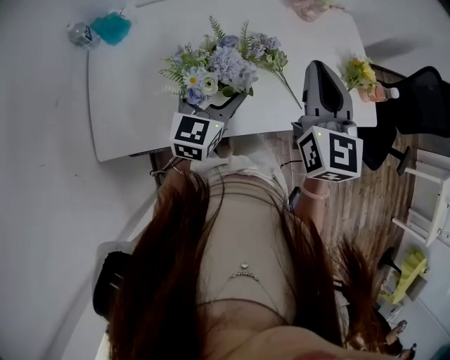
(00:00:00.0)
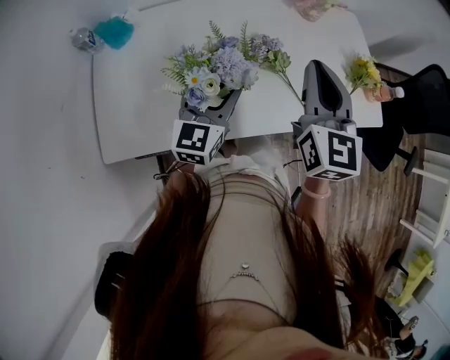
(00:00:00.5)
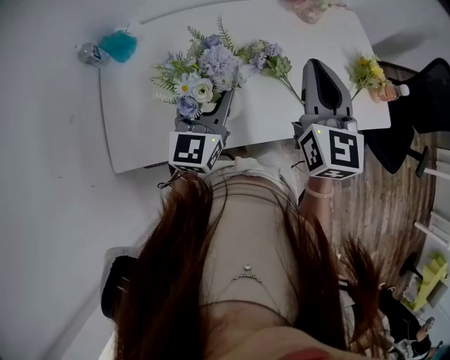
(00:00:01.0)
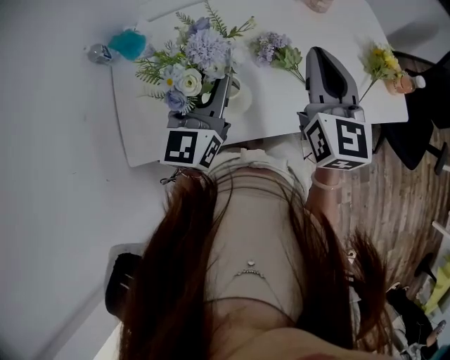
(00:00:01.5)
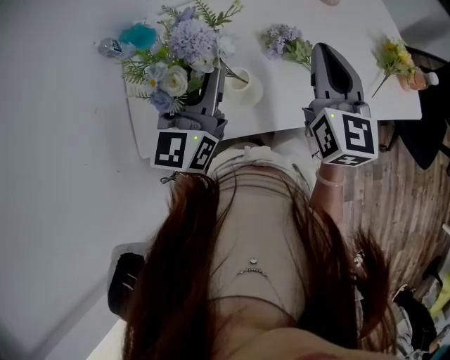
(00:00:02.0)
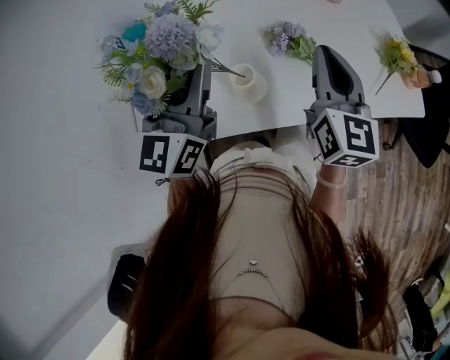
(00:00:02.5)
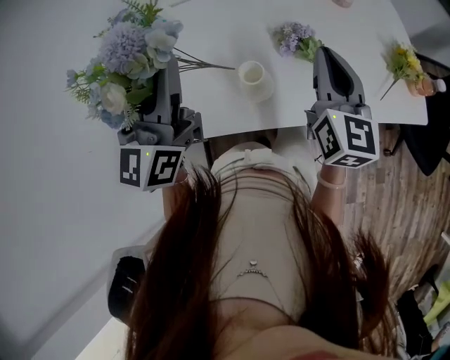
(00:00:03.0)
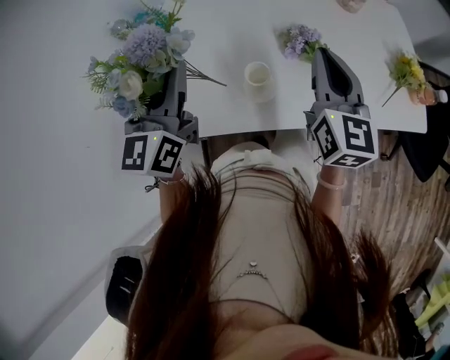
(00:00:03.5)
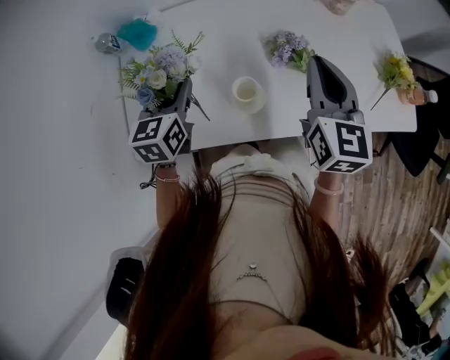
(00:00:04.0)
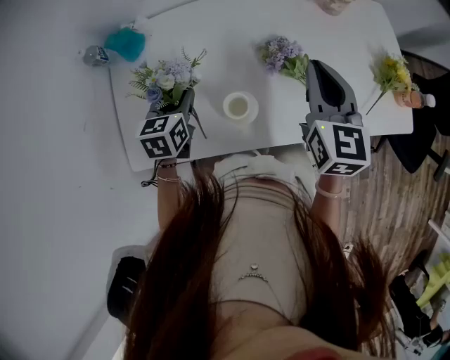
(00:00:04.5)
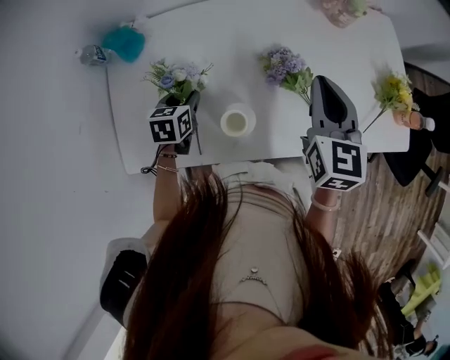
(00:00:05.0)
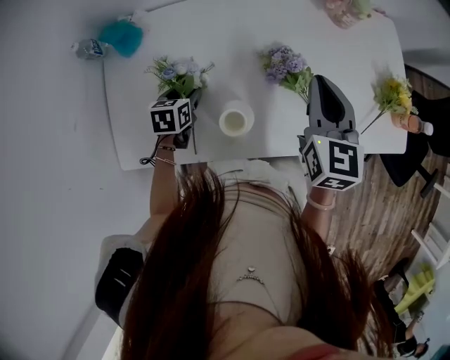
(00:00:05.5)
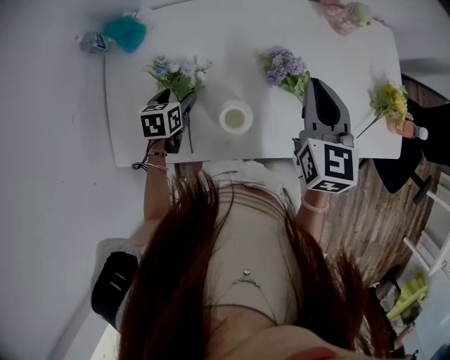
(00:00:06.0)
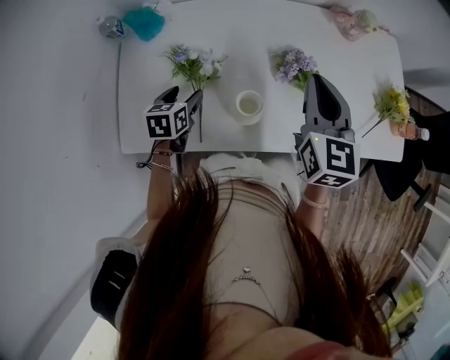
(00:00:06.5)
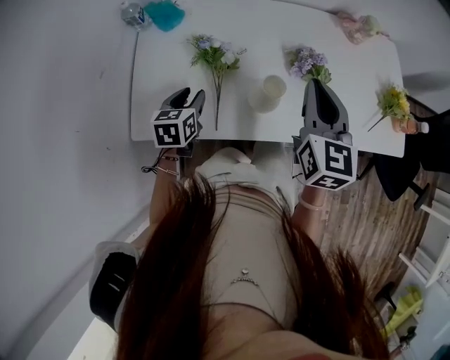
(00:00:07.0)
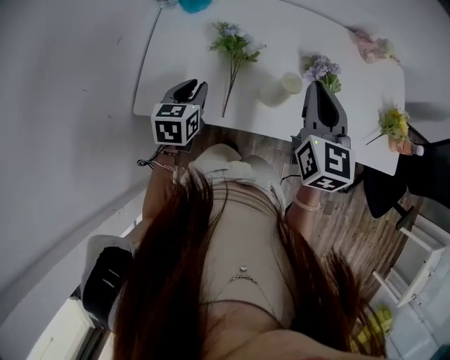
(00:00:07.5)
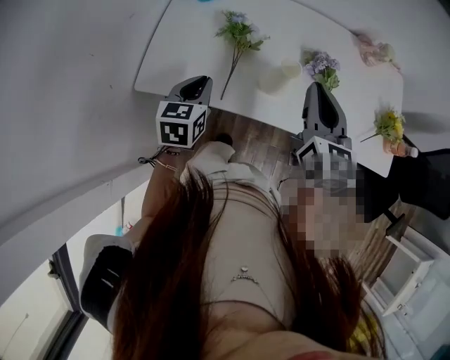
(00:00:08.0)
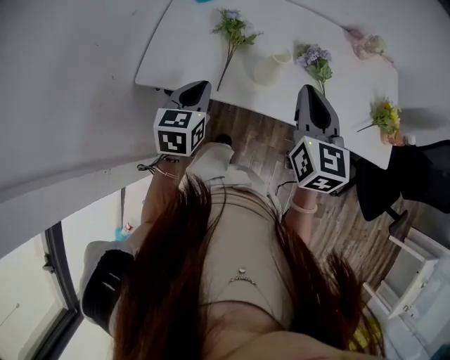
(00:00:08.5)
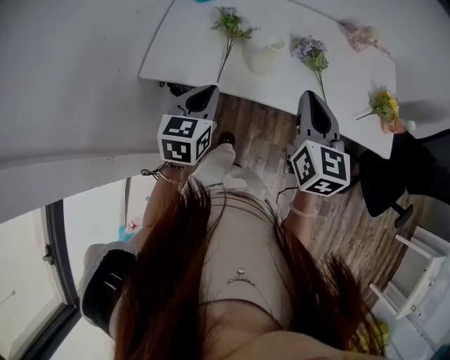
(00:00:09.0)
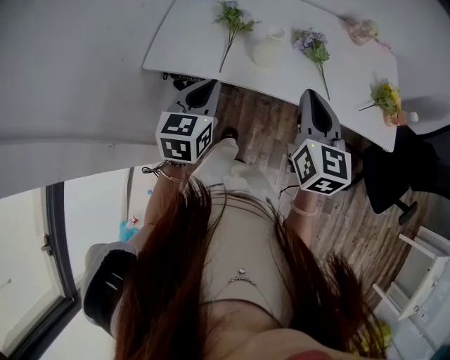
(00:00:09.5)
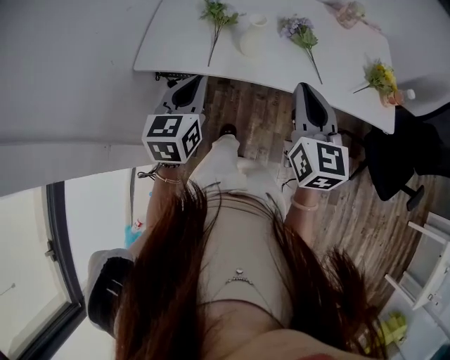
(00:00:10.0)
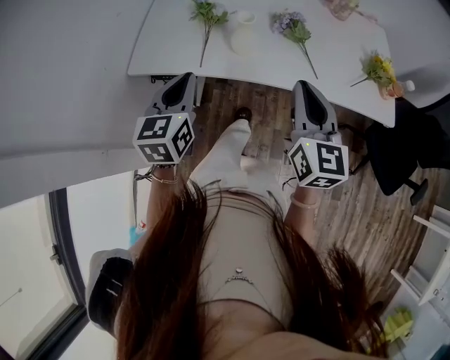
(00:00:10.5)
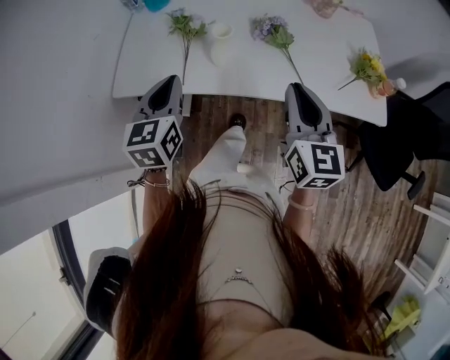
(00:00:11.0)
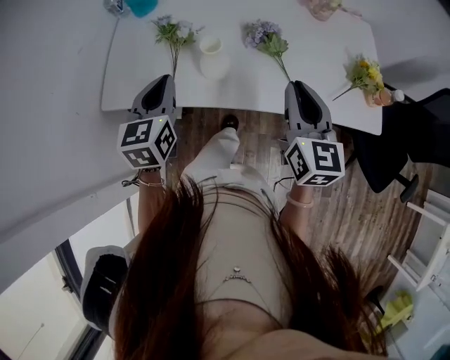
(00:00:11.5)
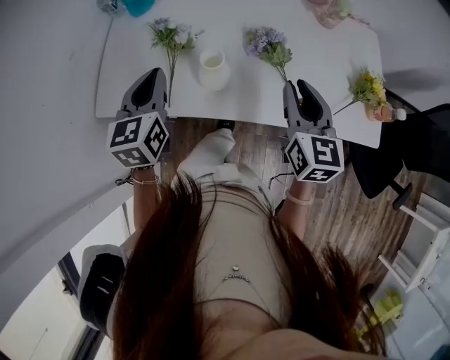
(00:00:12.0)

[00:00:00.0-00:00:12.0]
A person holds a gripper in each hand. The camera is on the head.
00:00:00.0 to 00:00:02.0: The left gripper is displaced upward by roughly 15 cm, and closes.
00:00:02.0 to 00:00:04.0: The left gripper moves downward and to the left, approximately 15 cm, and changes its angle by approximately 30 degrees.
00:00:04.0 to 00:00:06.0: The left gripper travels downward by about 15 cm, rotates approximately 30 degrees, and opens up. Meanwhile the right gripper moves forward, approximately 5 cm.
00:00:06.0 to 00:00:08.0: The right gripper heads backward and to the left, covering about 20 cm. The left gripper shifts some 25 cm backward and upward, swivels approximately 20 degrees, and closes.
00:00:08.0 to 00:00:10.0: The right gripper goes roughly 20 cm backward. The left gripper is displaced backward, upward and to the right by roughly 20 cm.
00:00:10.0 to 00:00:12.0: The right gripper shifts about 20 cm forward and to the right. The left gripper heads forward, covering roughly 20 cm.

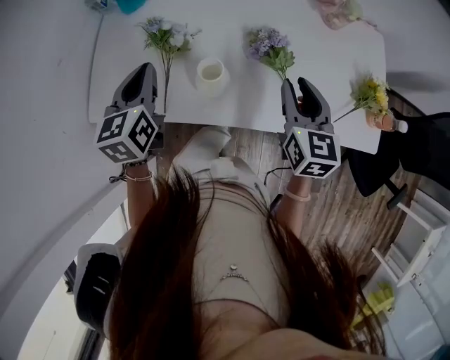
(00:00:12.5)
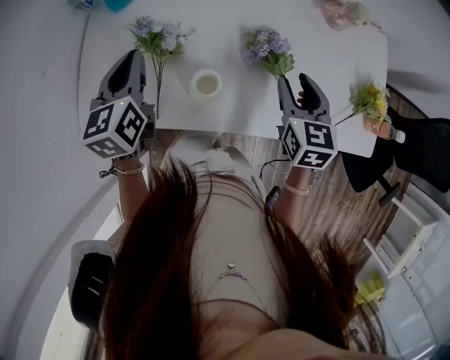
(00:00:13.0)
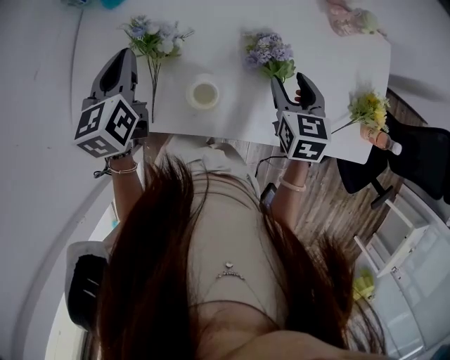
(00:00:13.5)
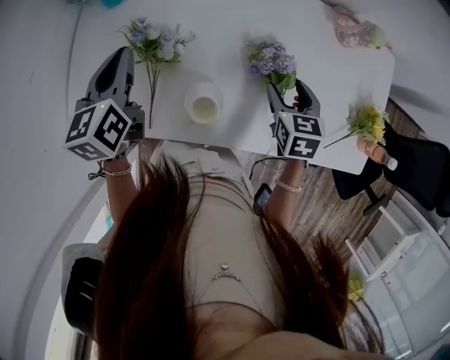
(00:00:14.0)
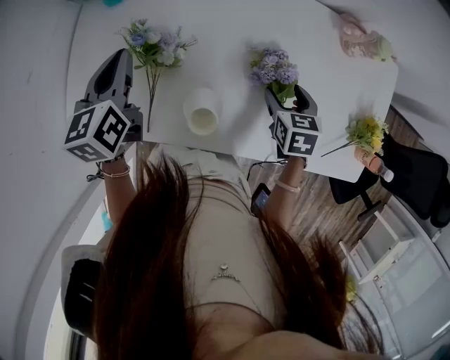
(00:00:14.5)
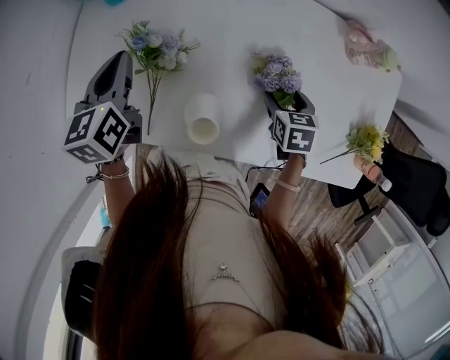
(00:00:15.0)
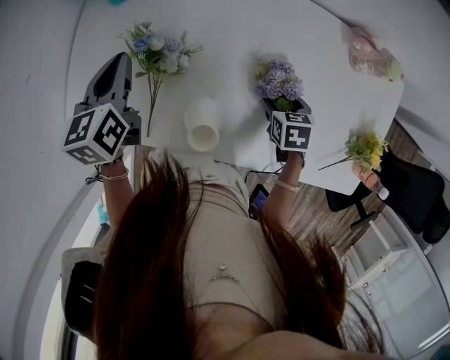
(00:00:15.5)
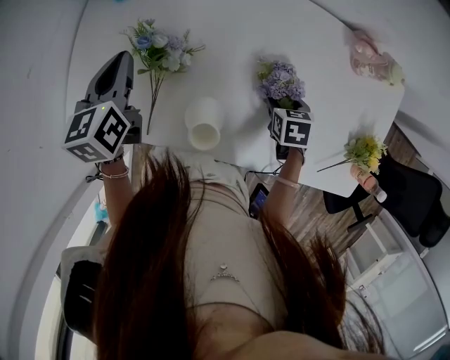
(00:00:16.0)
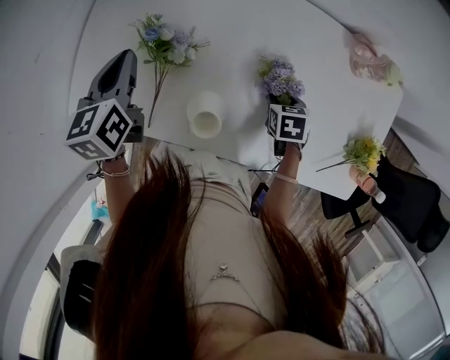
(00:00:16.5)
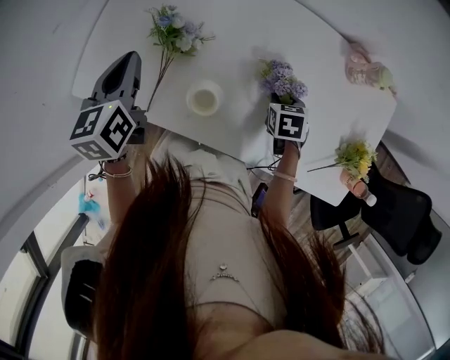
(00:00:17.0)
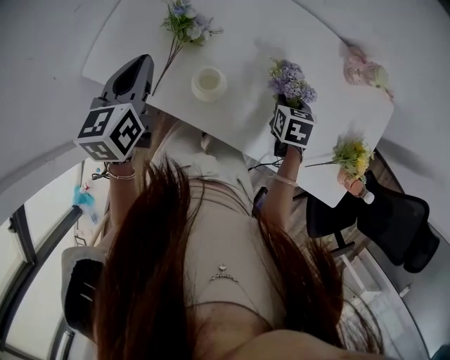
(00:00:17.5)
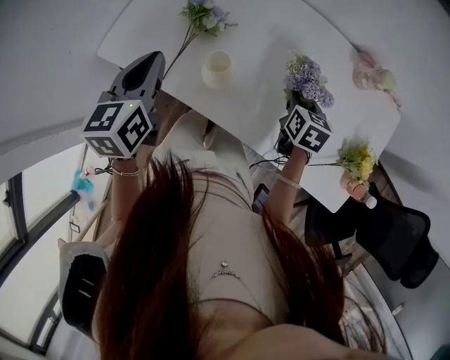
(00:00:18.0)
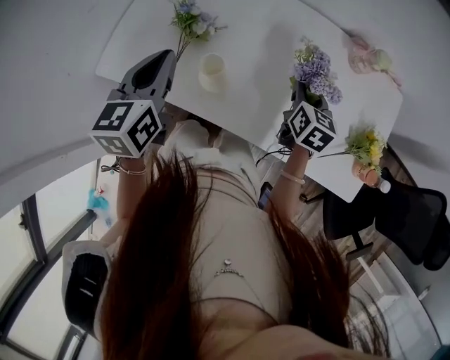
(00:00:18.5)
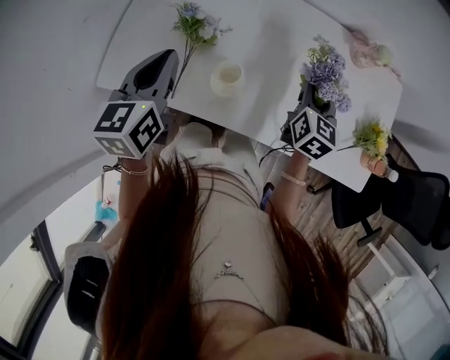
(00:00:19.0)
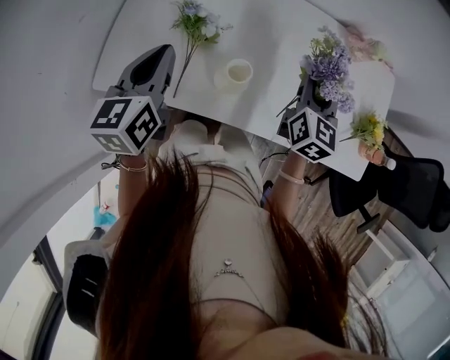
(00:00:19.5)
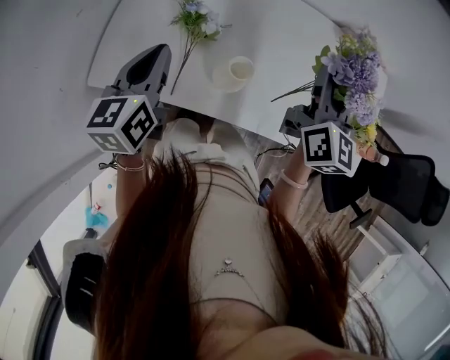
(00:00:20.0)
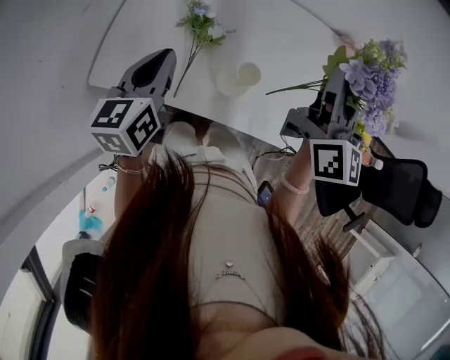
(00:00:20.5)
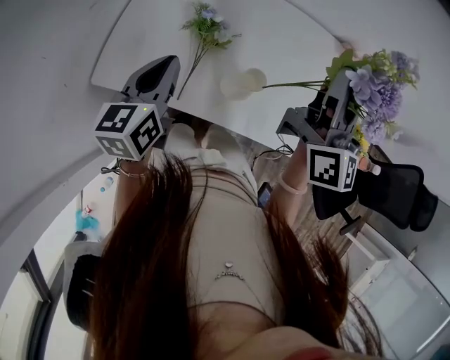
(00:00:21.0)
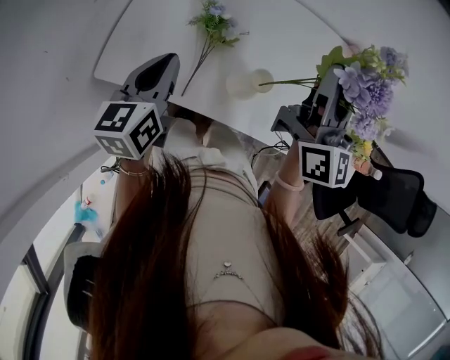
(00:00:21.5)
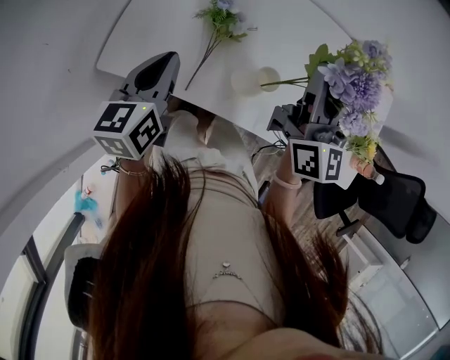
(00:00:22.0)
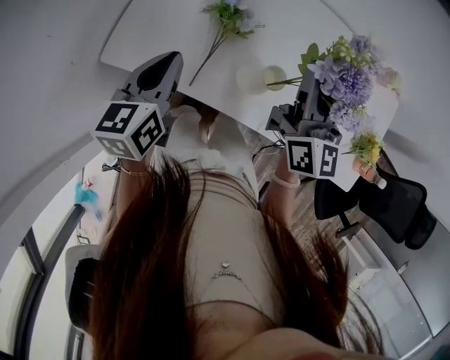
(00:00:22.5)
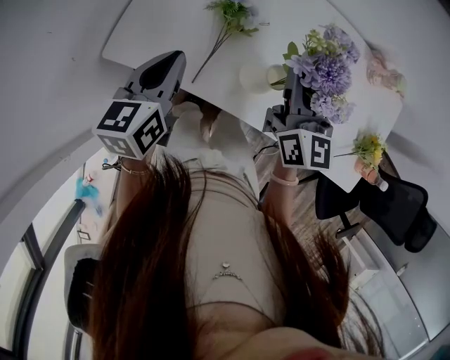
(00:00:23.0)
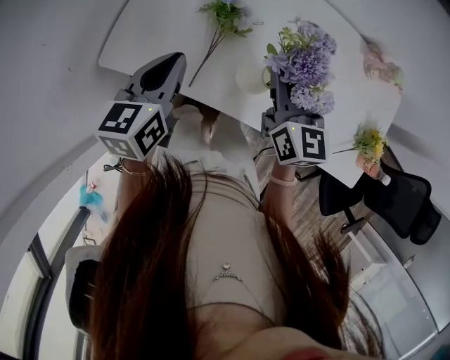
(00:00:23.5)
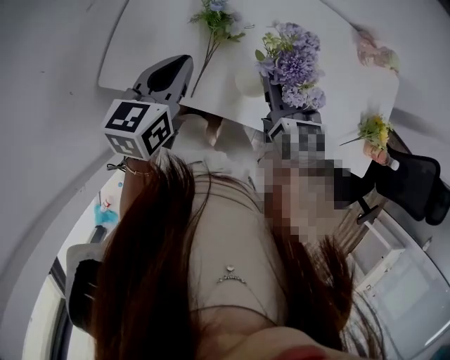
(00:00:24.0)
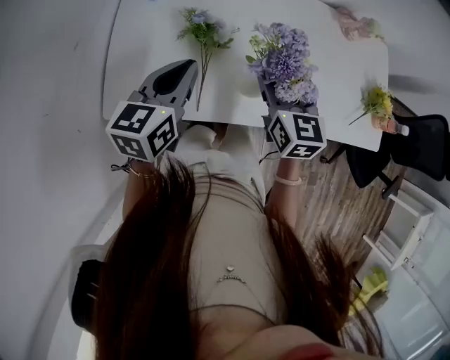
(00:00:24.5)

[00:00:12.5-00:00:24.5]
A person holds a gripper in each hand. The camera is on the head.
00:00:12.5 to 00:00:14.5: The right gripper travels downward and forward by some 20 cm, tips its fingers downward by approximately 30 degrees, and opens up. The left gripper is displaced forward by some 15 cm.
00:00:14.5 to 00:00:16.5: The right gripper goes about 5 cm downward, and closes.
00:00:16.5 to 00:00:18.5: The right gripper is displaced upward by approximately 15 cm, and angles its fingers upward, by roughly 30 degrees, while the left gripper moves backward, upward and to the right, approximately 20 cm.
00:00:18.5 to 00:00:20.5: The left gripper heads to the left, covering some 10 cm. The right gripper travels upward and to the left by roughly 25 cm, and angles its fingers upward, by some 40 degrees.
00:00:20.5 to 00:00:22.5: The right gripper is displaced to the left and downward by about 10 cm.
00:00:22.5 to 00:00:24.5: The right gripper moves downward, approximately 10 cm, changes its angle by about 30 degrees, and opens its fingers. Meanwhile the left gripper heads forward, covering some 5 cm, and turns by approximately 30 degrees.

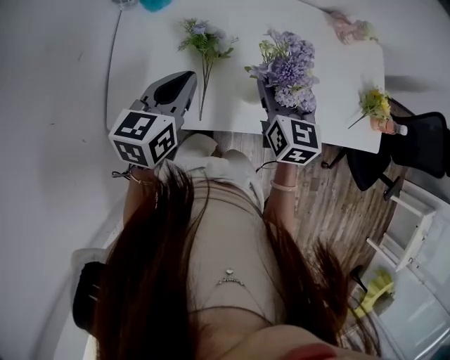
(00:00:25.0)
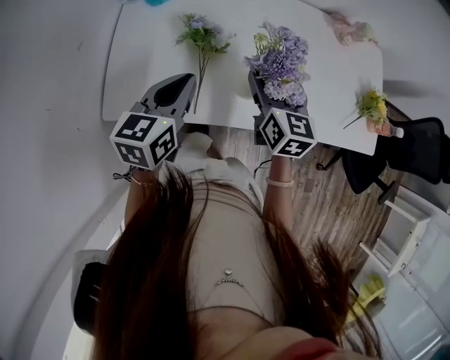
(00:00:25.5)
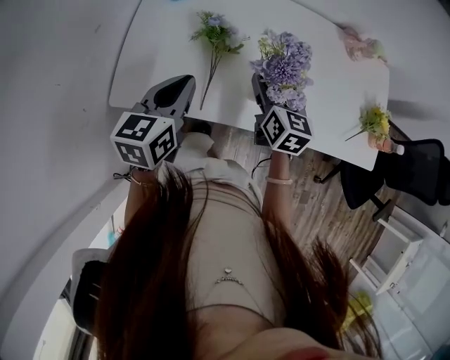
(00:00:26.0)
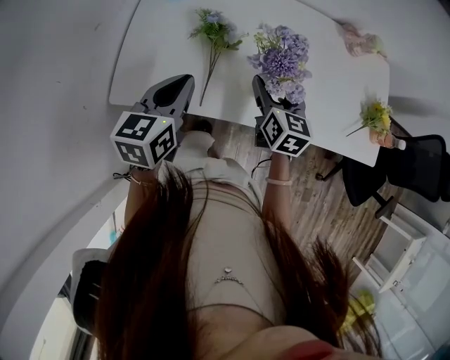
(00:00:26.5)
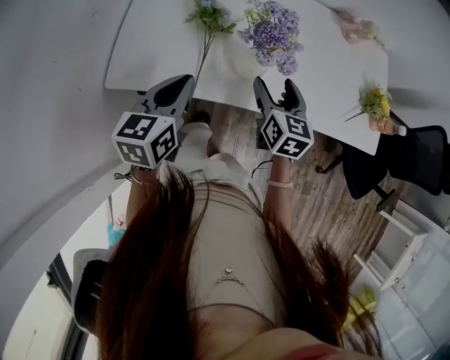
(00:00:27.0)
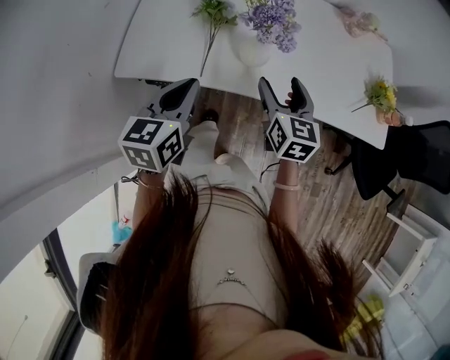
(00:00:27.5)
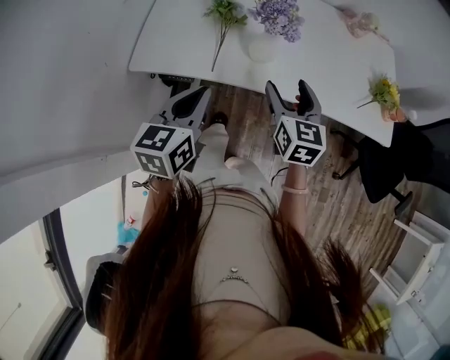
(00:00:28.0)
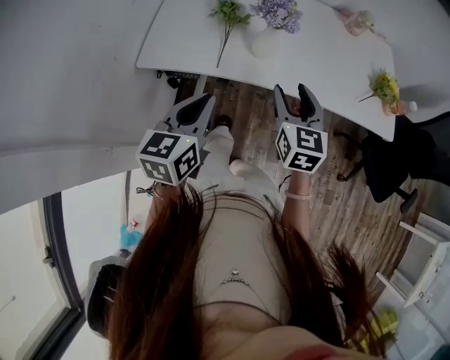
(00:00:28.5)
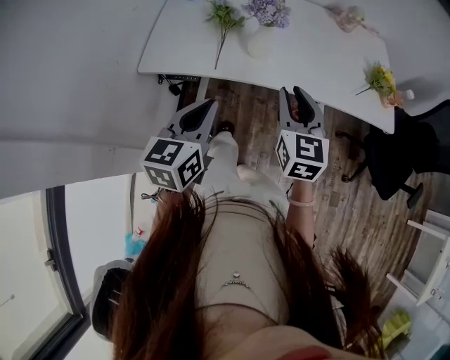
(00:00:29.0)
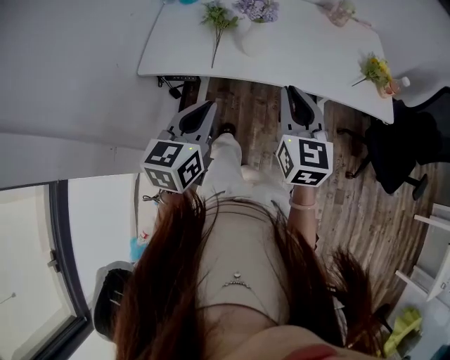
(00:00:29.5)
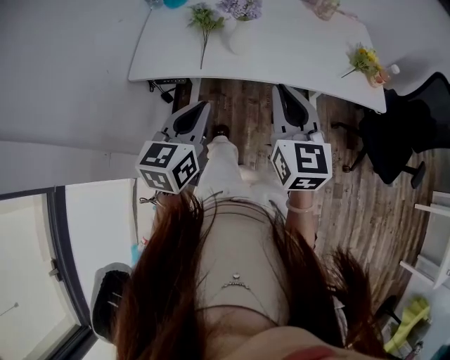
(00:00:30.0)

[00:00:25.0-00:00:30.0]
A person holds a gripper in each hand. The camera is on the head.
00:00:25.0 to 00:00:27.5: The two grippers go roughly 15 cm backward.
00:00:27.5 to 00:00:30.0: The left gripper shifts roughly 20 cm backward and to the right. Meanwhile the right gripper is displaced backward and upward by approximately 25 cm, and closes its fingers.
